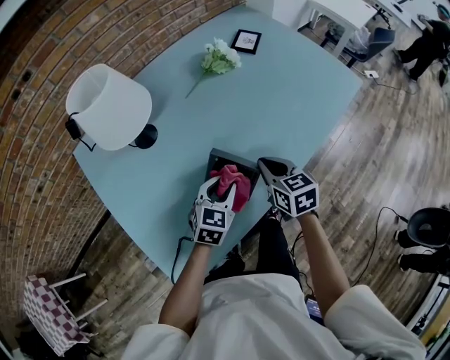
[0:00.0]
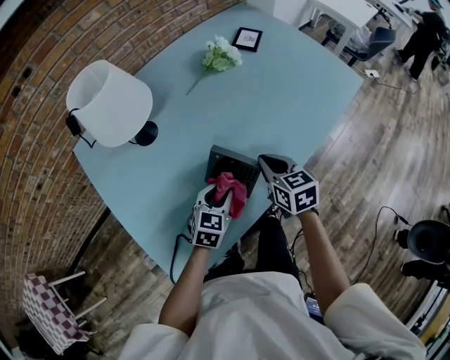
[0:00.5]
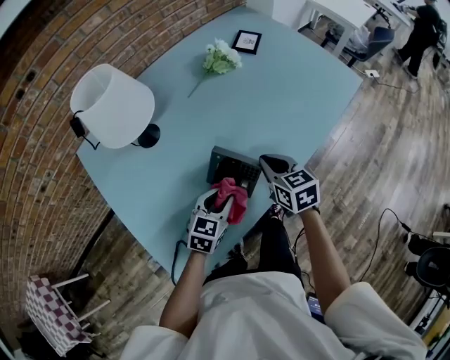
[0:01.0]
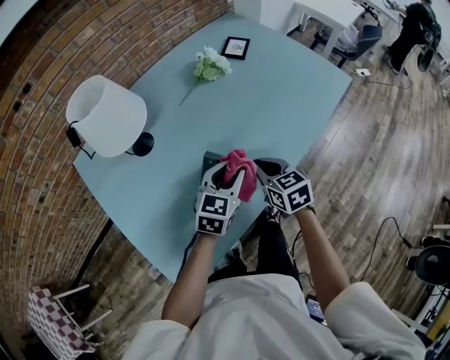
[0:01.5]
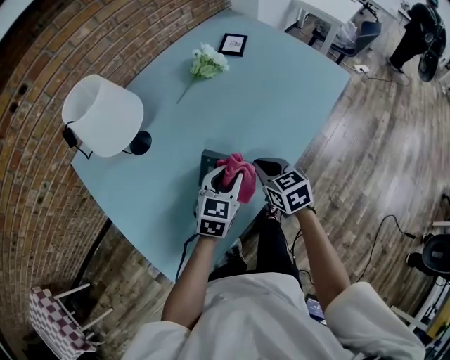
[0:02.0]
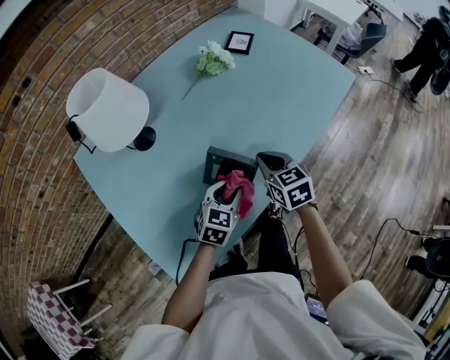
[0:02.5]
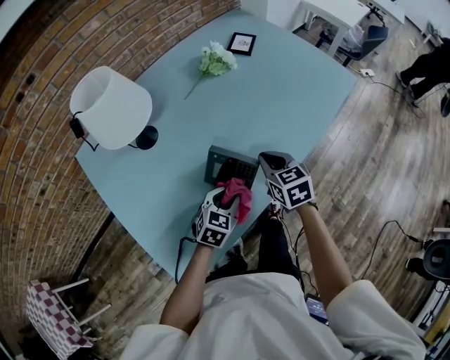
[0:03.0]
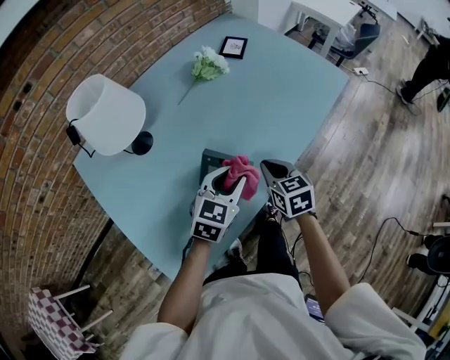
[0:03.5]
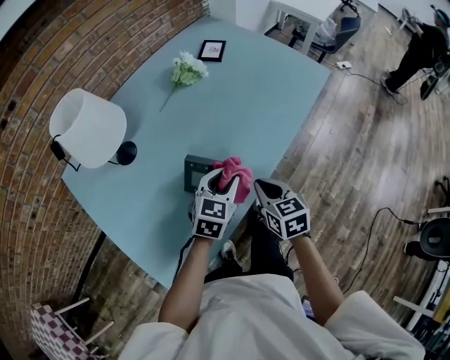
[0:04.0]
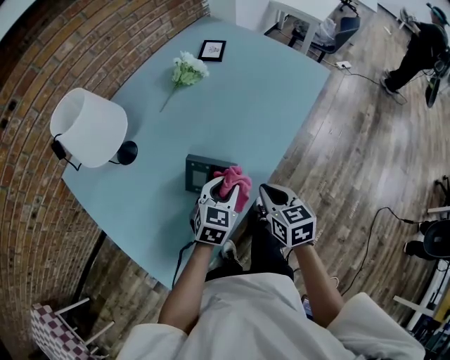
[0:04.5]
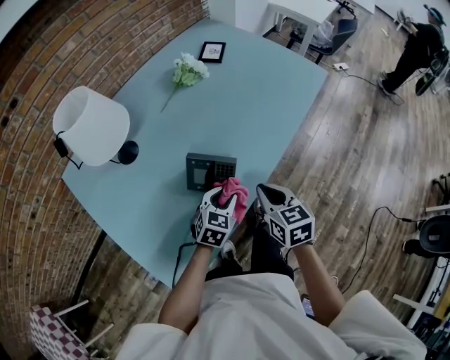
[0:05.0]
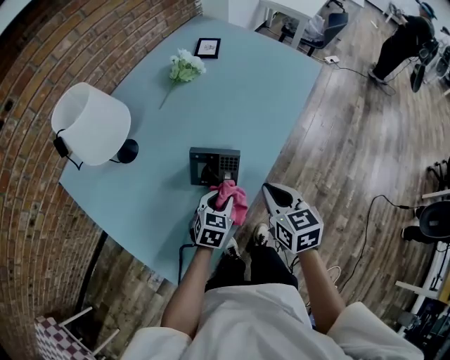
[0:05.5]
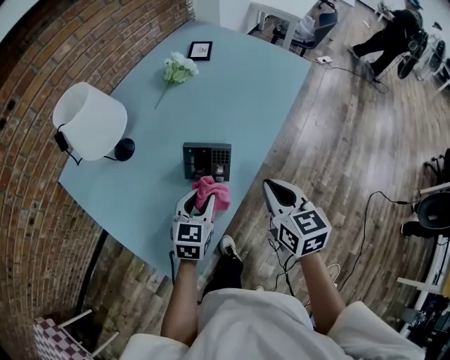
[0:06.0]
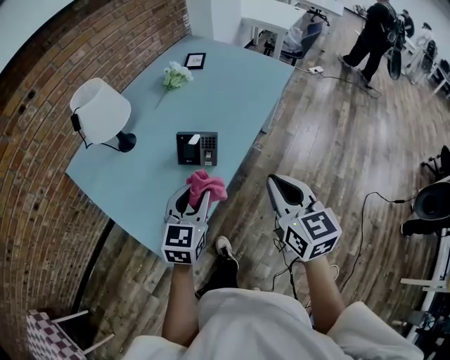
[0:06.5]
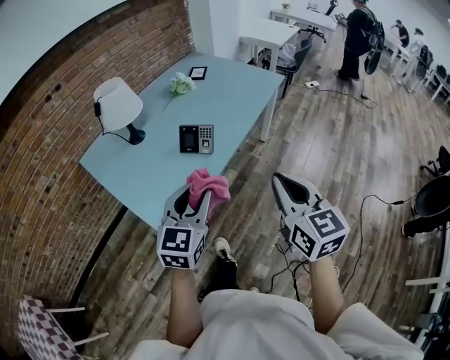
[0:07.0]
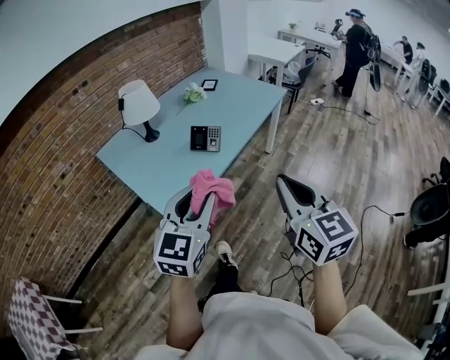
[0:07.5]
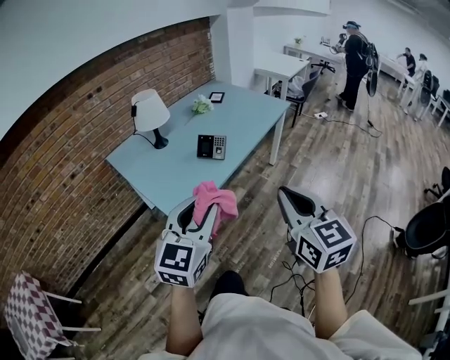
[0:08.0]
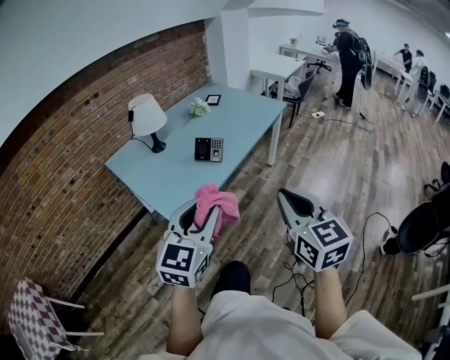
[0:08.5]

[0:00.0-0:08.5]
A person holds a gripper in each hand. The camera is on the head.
0:00.0 to 0:02.0: The left gripper moves some 5 cm.
0:02.0 to 0:04.0: The right gripper goes roughly 5 cm backward. The left gripper moves some 10 cm downward and comes back.
0:04.0 to 0:06.5: The right gripper goes approximately 25 cm upward and backward, and turns by some 20 degrees. Meanwhile the left gripper is displaced backward and upward by roughly 25 cm.
0:06.5 to 0:08.5: Both grippers travel together backward and upward, some 35 cm.

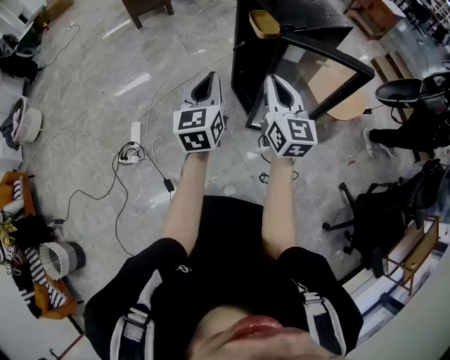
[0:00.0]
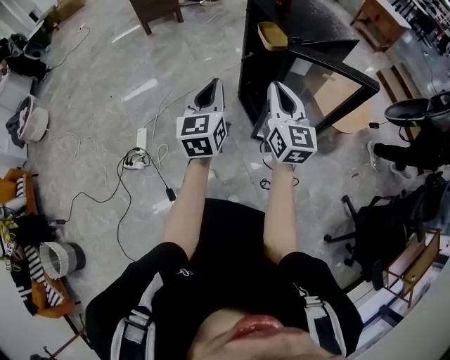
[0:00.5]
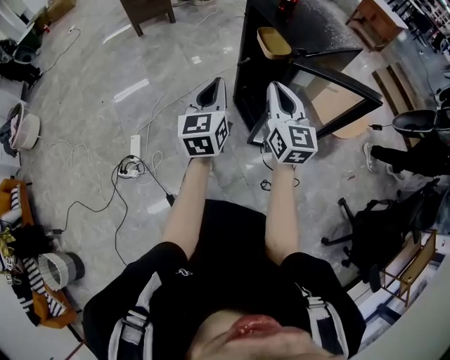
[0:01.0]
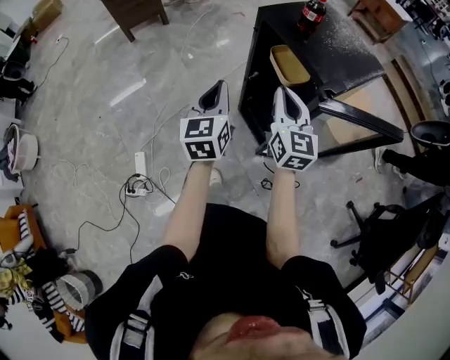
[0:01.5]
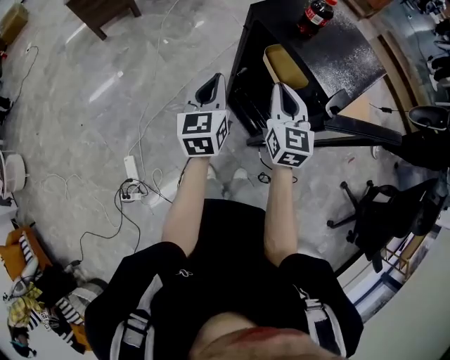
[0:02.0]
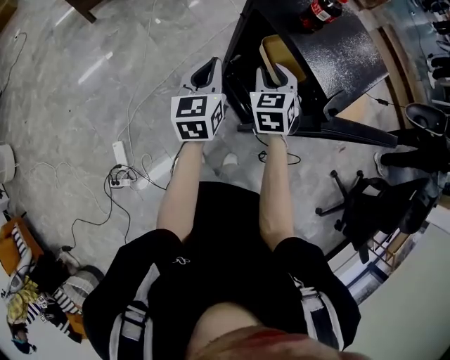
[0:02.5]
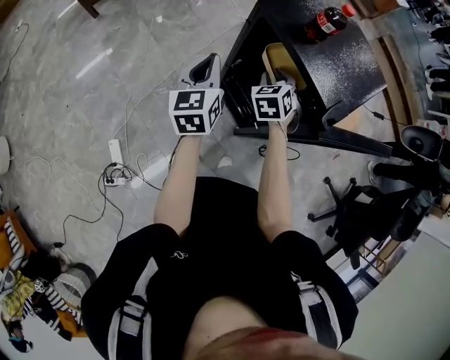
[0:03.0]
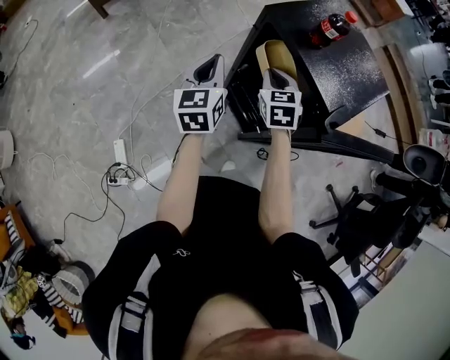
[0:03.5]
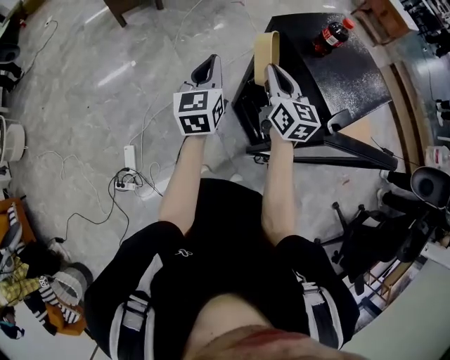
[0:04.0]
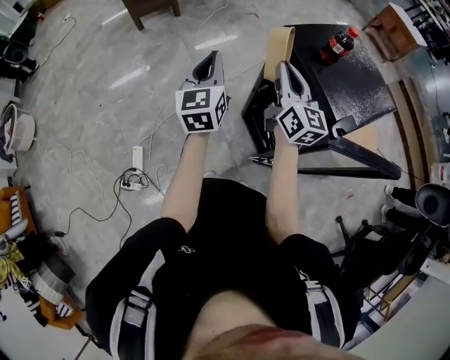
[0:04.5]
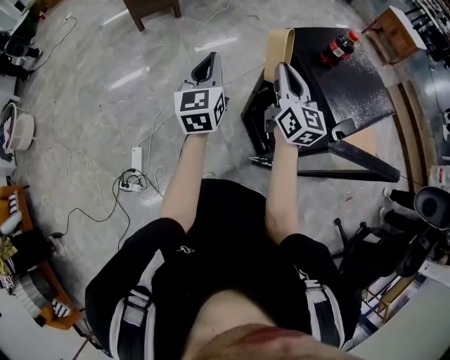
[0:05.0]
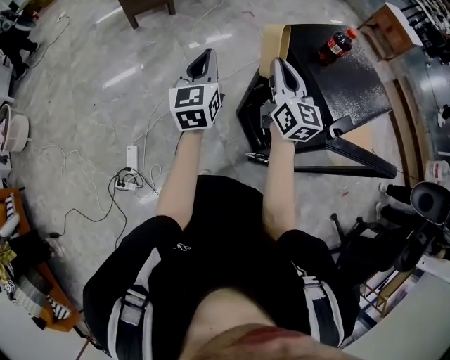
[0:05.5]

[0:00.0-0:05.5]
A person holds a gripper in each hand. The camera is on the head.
0:00.0 to 0:02.0: The grippers both shift forward by roughly 35 cm. The right gripper changes its angle by roughly 20 degrees.
0:02.0 to 0:03.5: The left gripper moves forward, about 5 cm; the right gripper heads forward and downward, covering roughly 10 cm, swivels about 30 degrees, and opens, then closes once more.
0:03.5 to 0:05.5: The left gripper travels to the left and upward by approximately 10 cm; the right gripper is displaced upward and to the left by roughly 15 cm, and points its fingers some 40 degrees further upward.

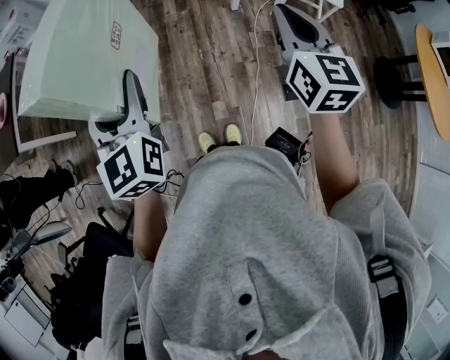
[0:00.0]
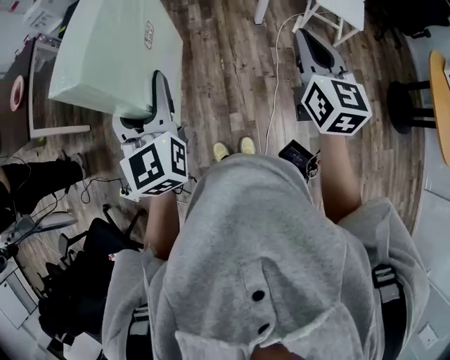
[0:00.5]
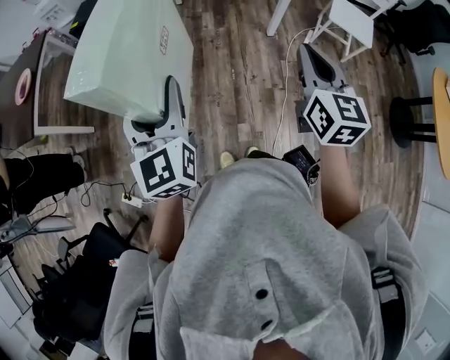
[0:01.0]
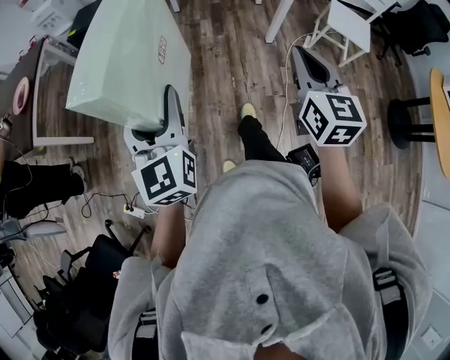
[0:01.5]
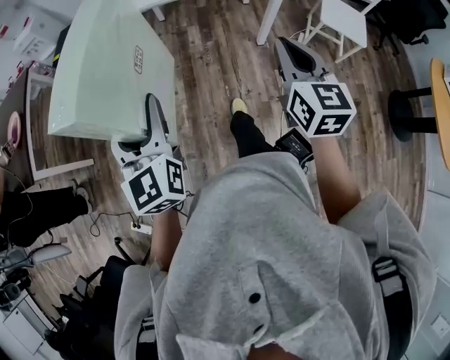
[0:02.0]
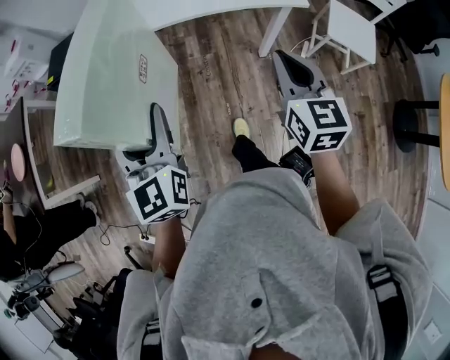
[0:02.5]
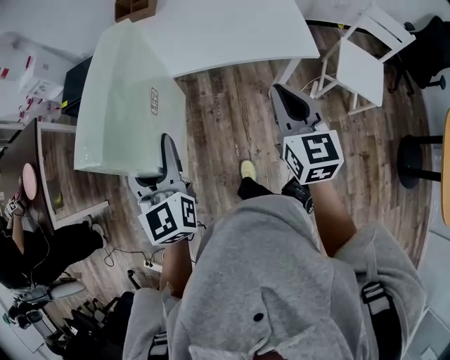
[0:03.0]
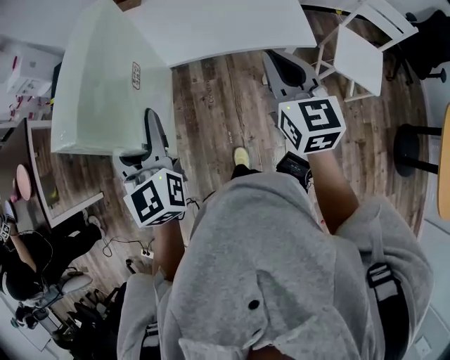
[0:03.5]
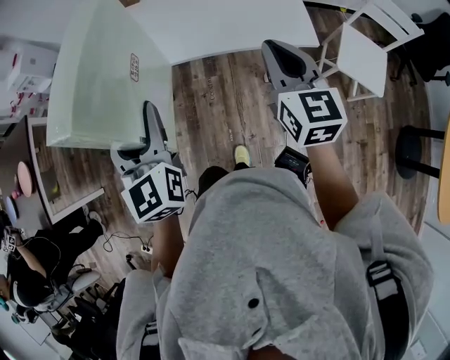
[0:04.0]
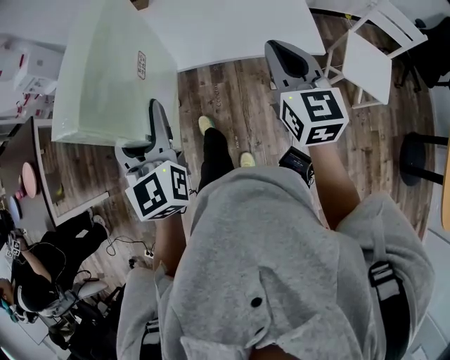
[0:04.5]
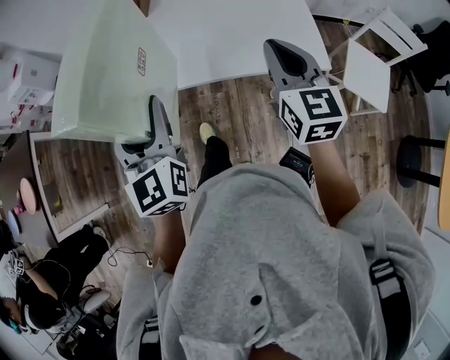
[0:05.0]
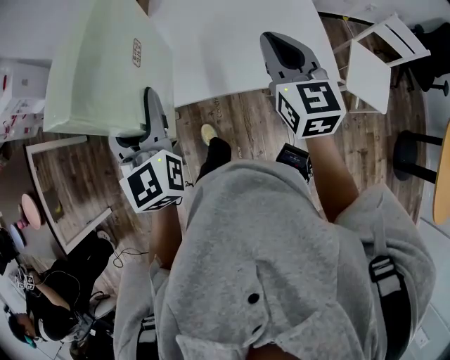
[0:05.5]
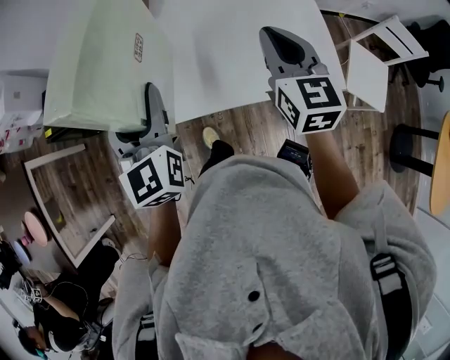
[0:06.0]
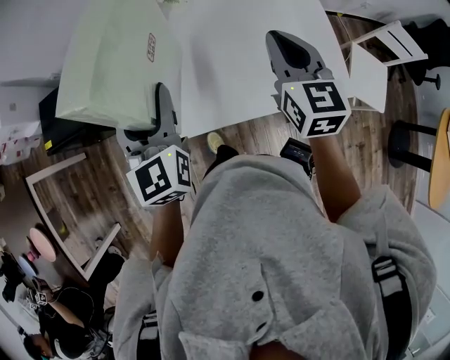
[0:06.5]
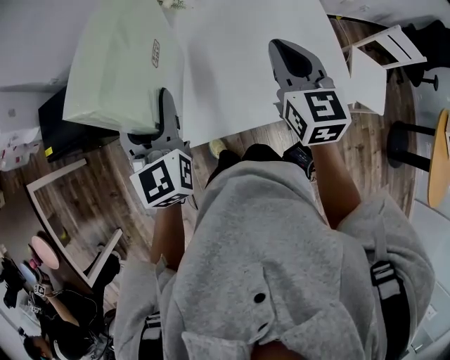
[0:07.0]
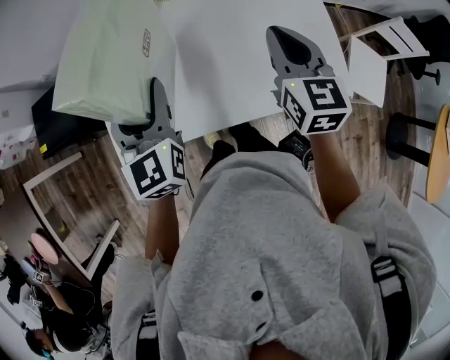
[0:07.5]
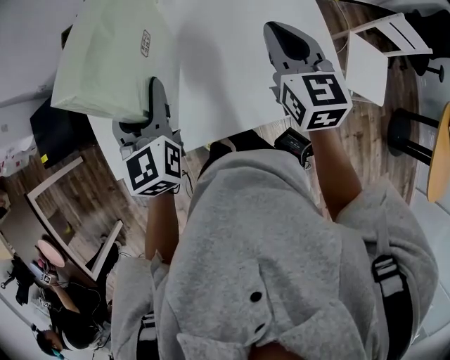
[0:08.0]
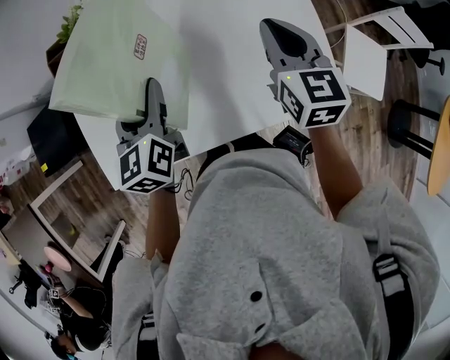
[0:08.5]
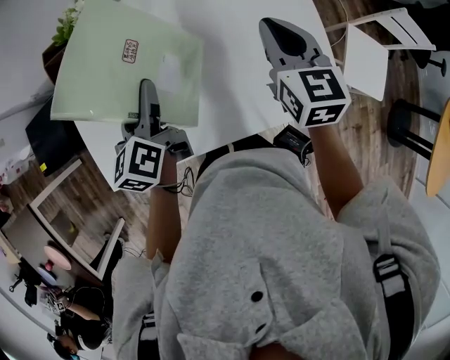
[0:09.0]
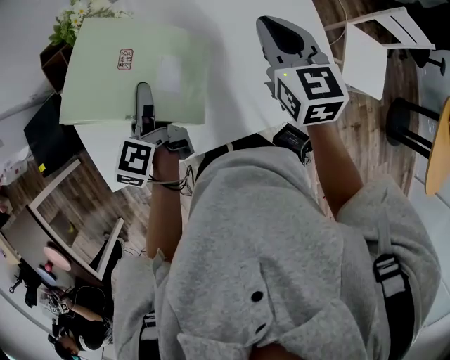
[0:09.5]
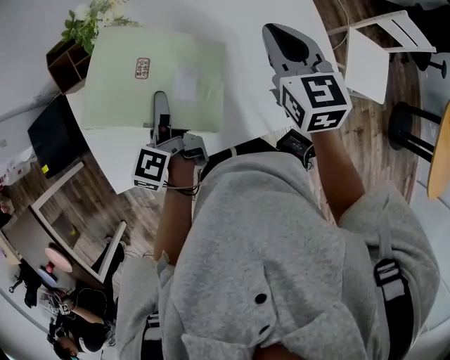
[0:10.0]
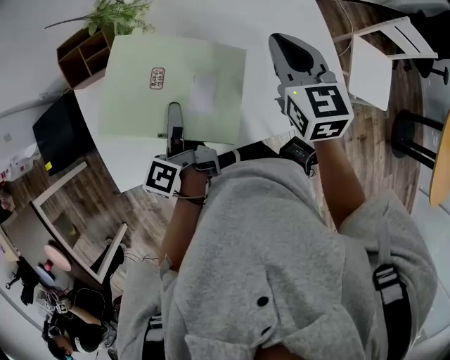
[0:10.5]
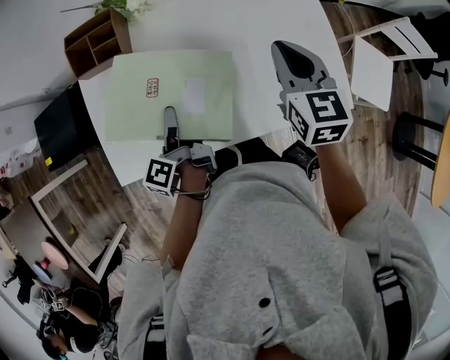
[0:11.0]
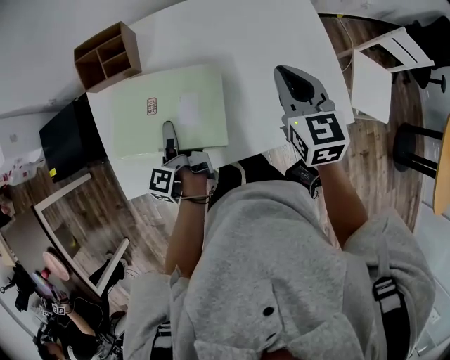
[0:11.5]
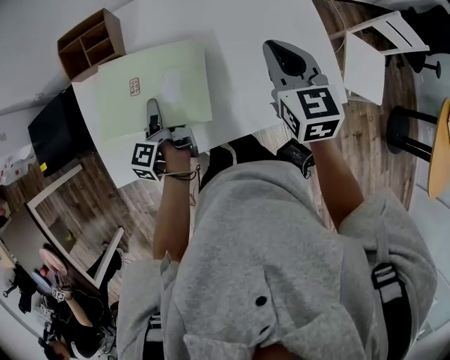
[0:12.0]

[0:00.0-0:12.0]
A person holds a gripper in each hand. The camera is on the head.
0:00.0 to 0:02.0: Both grippers travel together forward and to the left, roughly 15 cm.
0:02.0 to 0:04.0: The left gripper moves forward and to the right, about 40 cm. Meanwhile the right gripper shifts some 35 cm forward.
0:04.0 to 0:06.0: The two grippers go some 25 cm forward.
0:06.0 to 0:08.0: The left gripper is displaced forward, downward and to the right by some 15 cm; the right gripper heads forward and to the right, covering approximately 15 cm.
0:08.0 to 0:10.0: The right gripper ends up some 5 cm from where it was. Meanwhile the left gripper moves downward, approximately 10 cm, and rotates around the line of its fingers by about 60 degrees, counterclockwise from behind.
0:10.0 to 0:12.0: The left gripper moves downward and to the left, some 10 cm, and changes its angle by roughly 20 degrees. Meanwhile the right gripper is displaced backward by approximately 5 cm.
